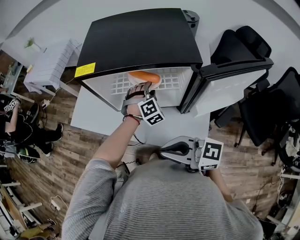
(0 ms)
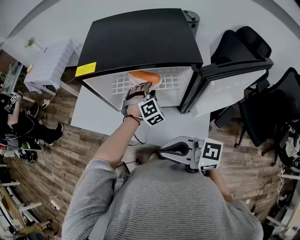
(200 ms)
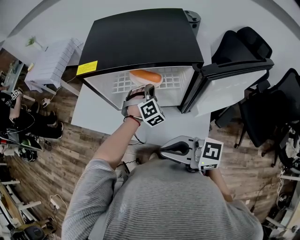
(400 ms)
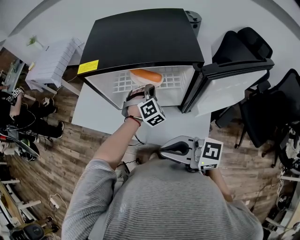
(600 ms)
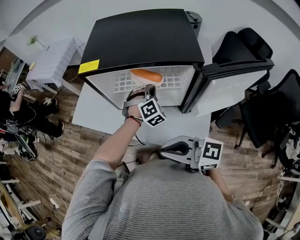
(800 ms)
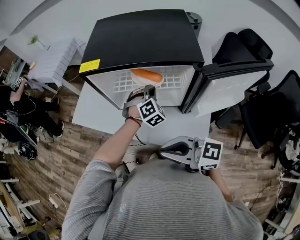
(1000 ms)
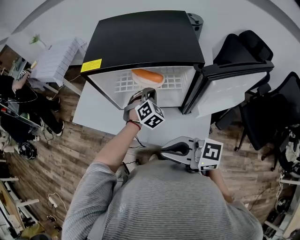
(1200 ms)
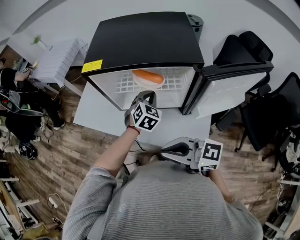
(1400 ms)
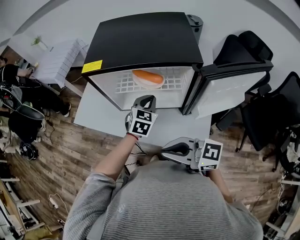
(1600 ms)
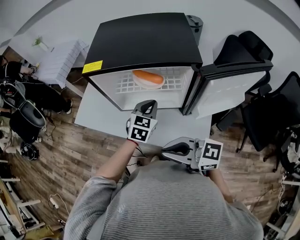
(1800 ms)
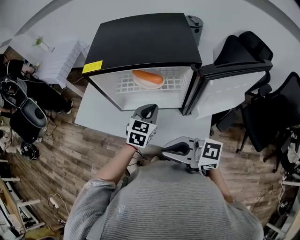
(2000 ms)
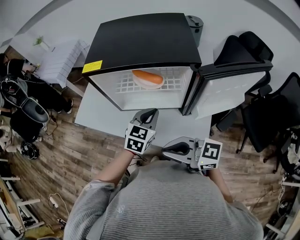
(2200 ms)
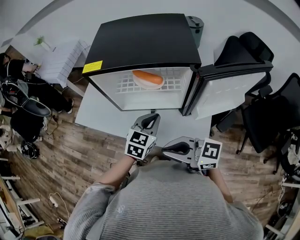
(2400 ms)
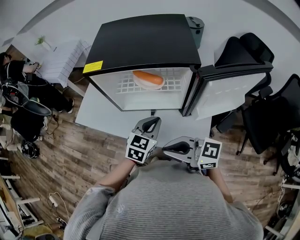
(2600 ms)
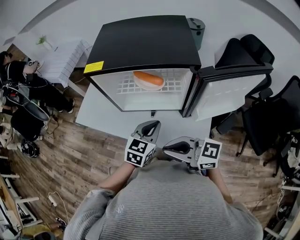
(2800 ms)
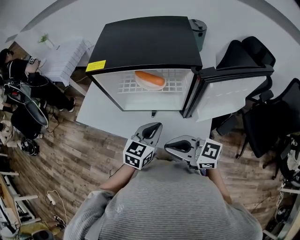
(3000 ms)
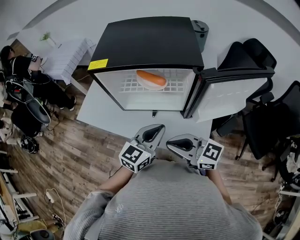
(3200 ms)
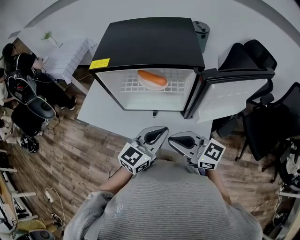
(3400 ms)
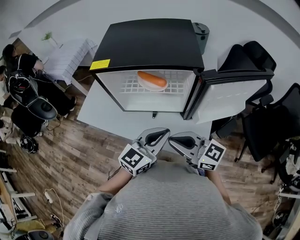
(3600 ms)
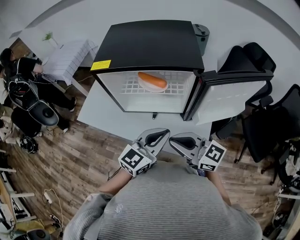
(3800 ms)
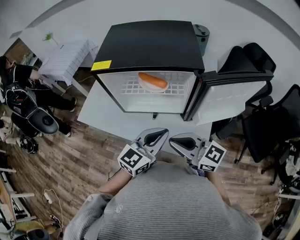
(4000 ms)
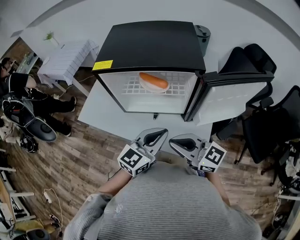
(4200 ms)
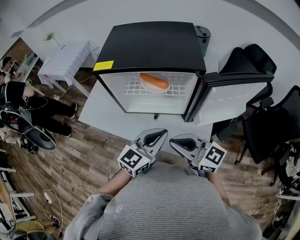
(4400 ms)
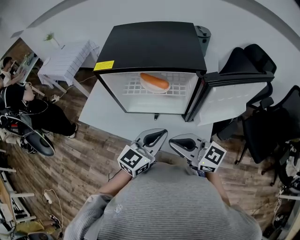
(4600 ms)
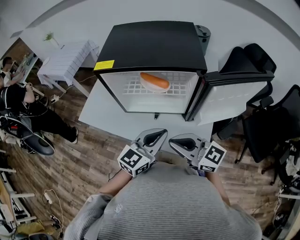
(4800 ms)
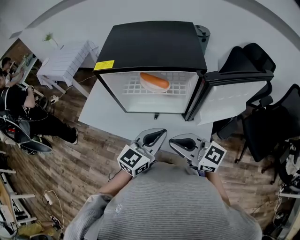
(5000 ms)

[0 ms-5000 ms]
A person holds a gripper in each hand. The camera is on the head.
0 ms to 1600 ms: The left gripper goes about 5 cm to the left, rotates around the line of its fingers by roughly 50 degrees, counterclockwise from behind, and closes up.
1600 ms to 3400 ms: The left gripper heads backward and upward, covering some 20 cm, and changes its angle by approximately 40 degrees. The right gripper shifts by approximately 5 cm.
3400 ms to 5000 ms: The grippers stay close to where they were, moving slightly.

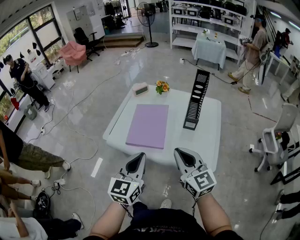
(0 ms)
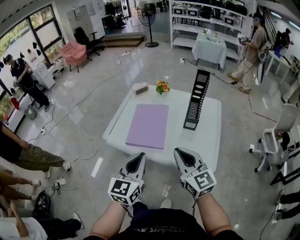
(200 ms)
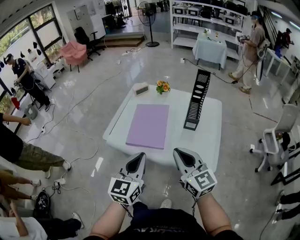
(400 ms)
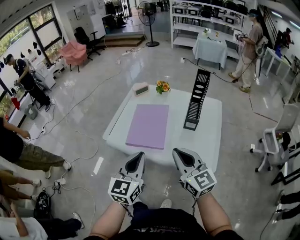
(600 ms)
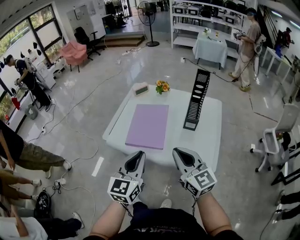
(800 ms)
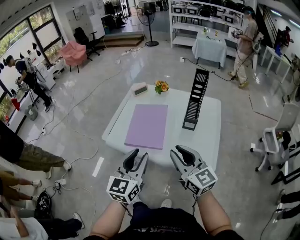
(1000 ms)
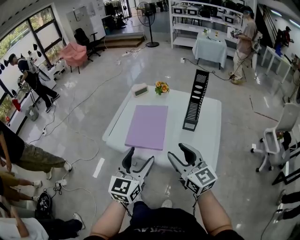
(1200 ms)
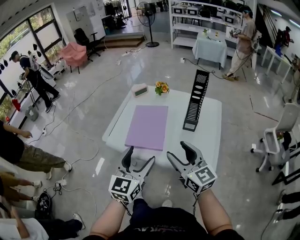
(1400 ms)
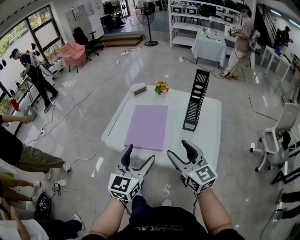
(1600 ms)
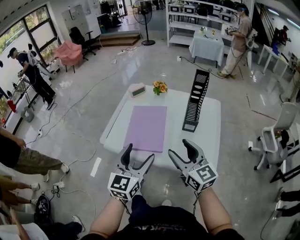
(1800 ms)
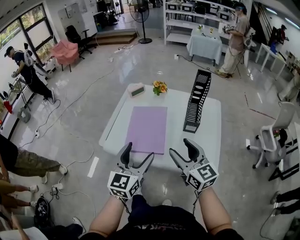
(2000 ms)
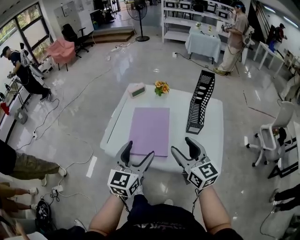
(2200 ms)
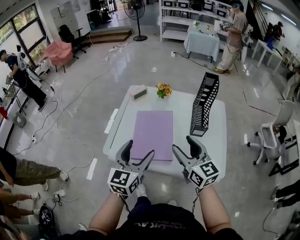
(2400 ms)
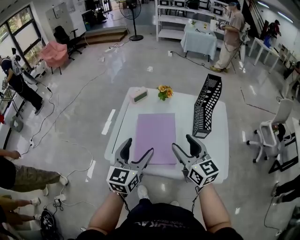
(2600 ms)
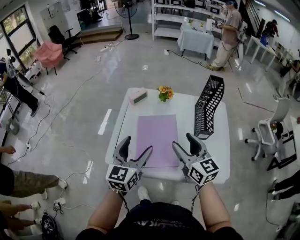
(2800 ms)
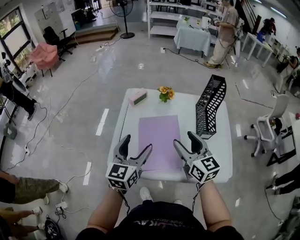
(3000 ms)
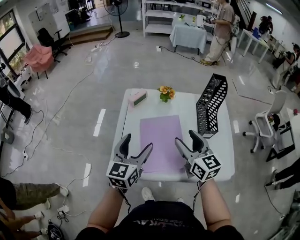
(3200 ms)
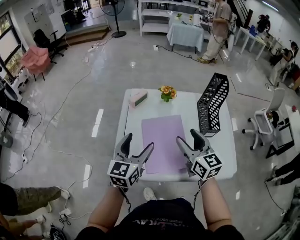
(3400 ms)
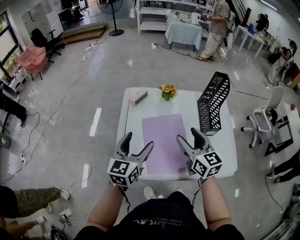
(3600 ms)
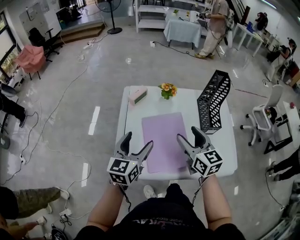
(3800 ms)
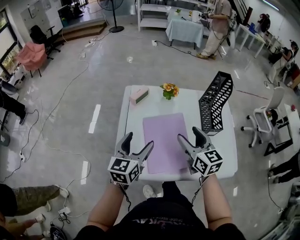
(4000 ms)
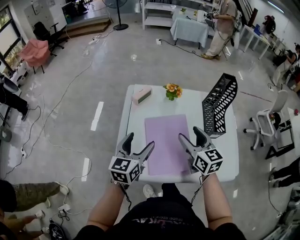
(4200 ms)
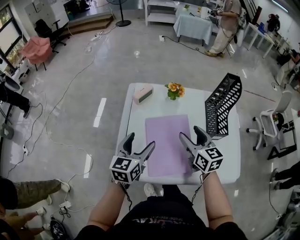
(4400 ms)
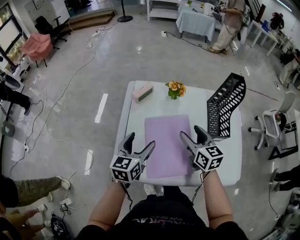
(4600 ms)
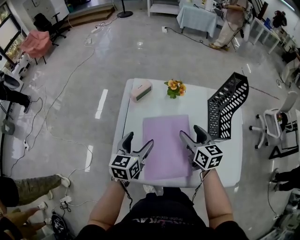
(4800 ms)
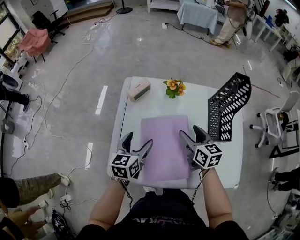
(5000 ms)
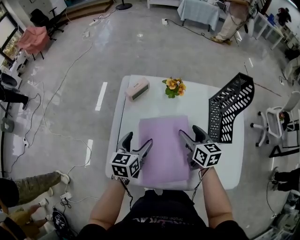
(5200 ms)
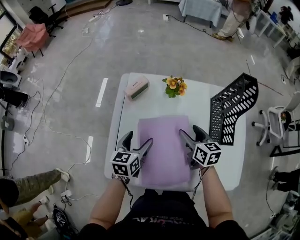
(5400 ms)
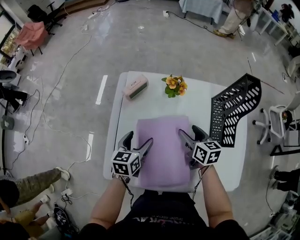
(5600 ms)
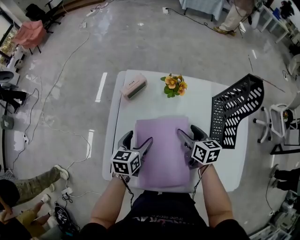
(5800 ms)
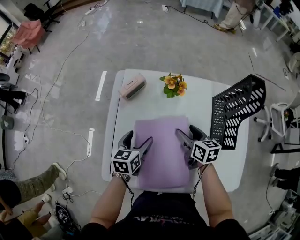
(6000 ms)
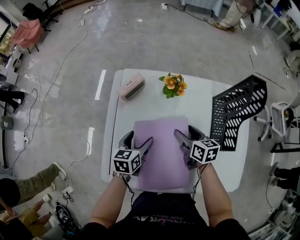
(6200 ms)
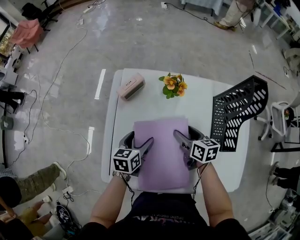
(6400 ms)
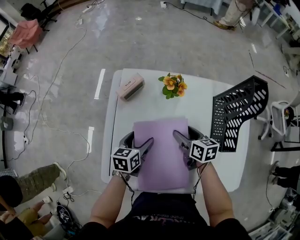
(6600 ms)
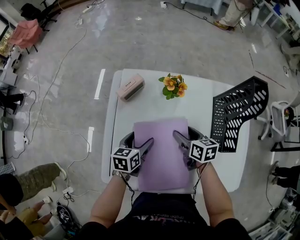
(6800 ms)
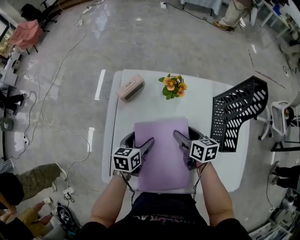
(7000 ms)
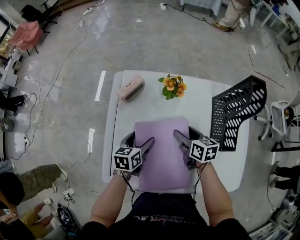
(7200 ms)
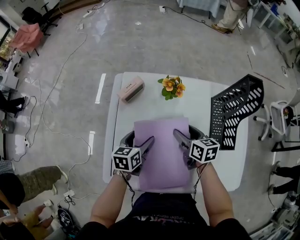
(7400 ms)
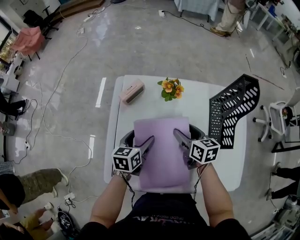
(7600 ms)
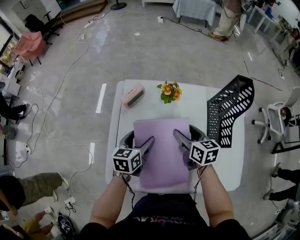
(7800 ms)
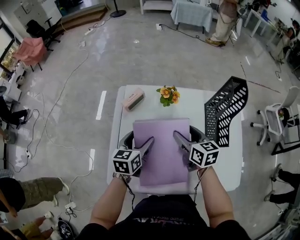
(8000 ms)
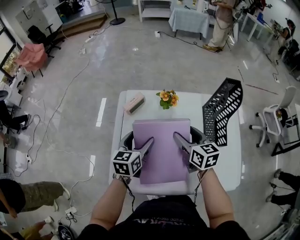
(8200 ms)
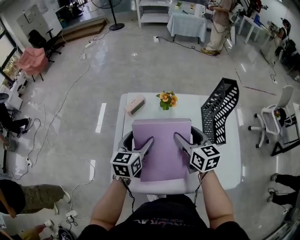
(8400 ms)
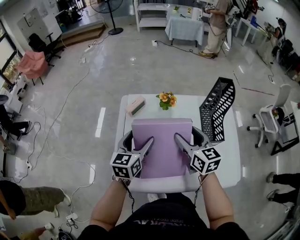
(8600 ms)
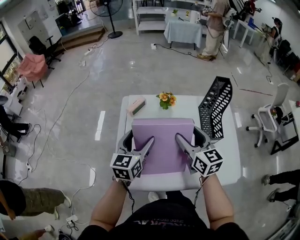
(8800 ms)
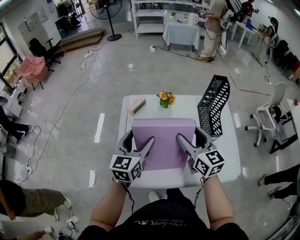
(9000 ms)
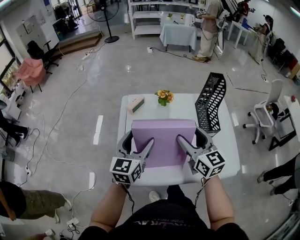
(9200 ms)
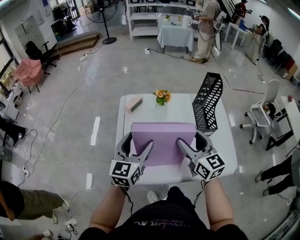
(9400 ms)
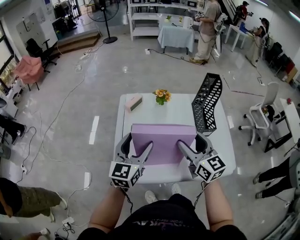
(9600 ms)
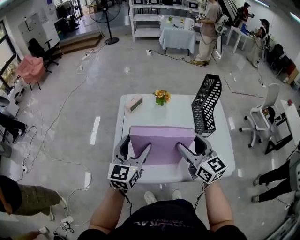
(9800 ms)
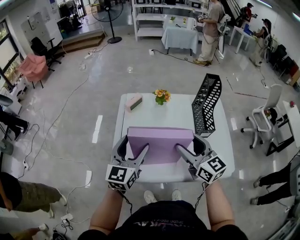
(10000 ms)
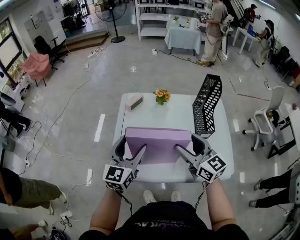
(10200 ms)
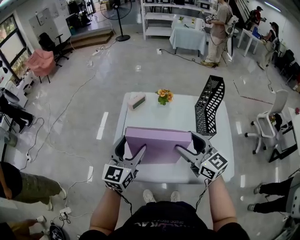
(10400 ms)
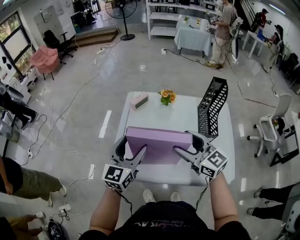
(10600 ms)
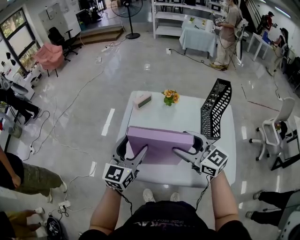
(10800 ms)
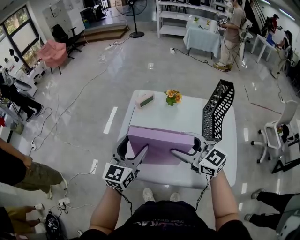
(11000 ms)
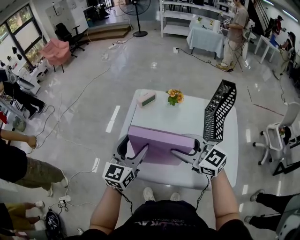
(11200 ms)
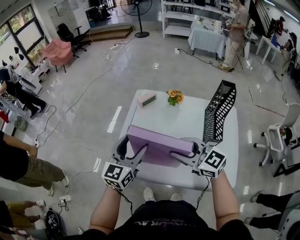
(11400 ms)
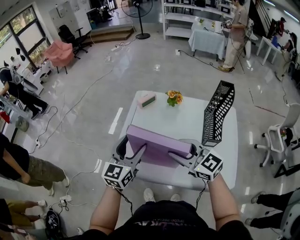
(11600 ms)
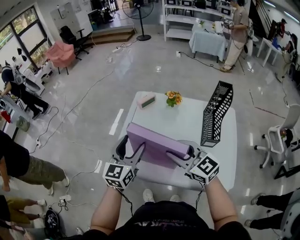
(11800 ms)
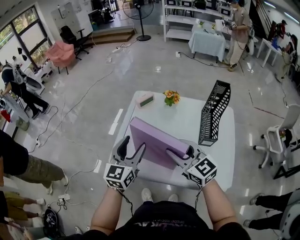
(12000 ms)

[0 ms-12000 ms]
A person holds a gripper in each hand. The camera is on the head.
0 ms to 1600 ms: The left gripper opens up. The right gripper opens up.
1600 ms to 3000 ms: The grippers both shift forward and to the left by some 25 cm.
3000 ms to 4400 ms: The left gripper moves downward and forward, approximately 10 cm, while the right gripper is displaced forward and downward by some 10 cm.
4400 ms to 6000 ms: Both grippers travel together downward and forward, roughly 20 cm. The right gripper swivels about 30 degrees. The left gripper rotates some 20 degrees.
6000 ms to 7600 ms: The grippers make only small movements.
7600 ms to 9000 ms: The grippers both shift upward and backward by about 20 cm. The left gripper changes its angle by approximately 30 degrees. The right gripper changes its angle by approximately 30 degrees.
9000 ms to 10400 ms: The two grippers go roughly 10 cm backward. The right gripper swivels about 20 degrees.
10400 ms to 12000 ms: The right gripper closes up.

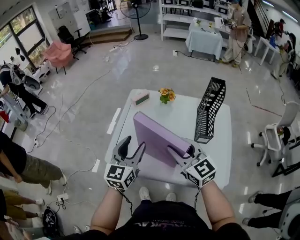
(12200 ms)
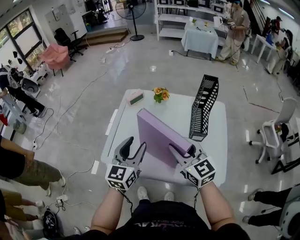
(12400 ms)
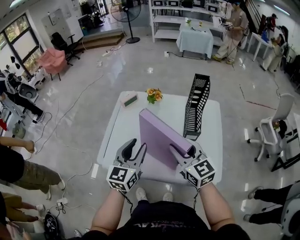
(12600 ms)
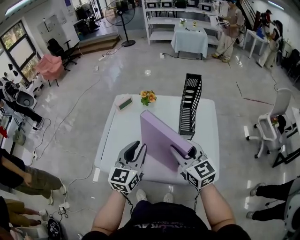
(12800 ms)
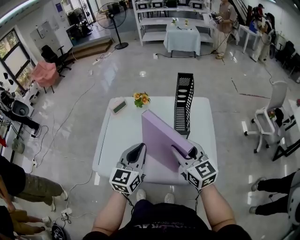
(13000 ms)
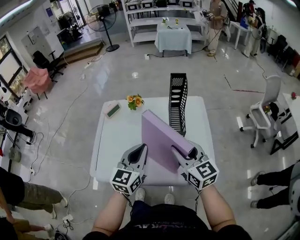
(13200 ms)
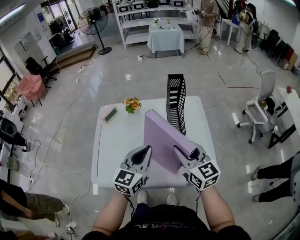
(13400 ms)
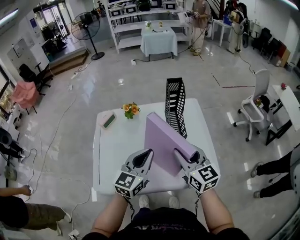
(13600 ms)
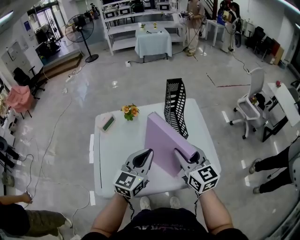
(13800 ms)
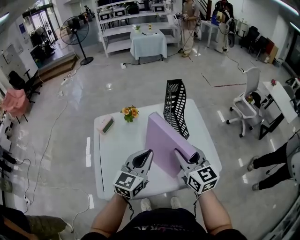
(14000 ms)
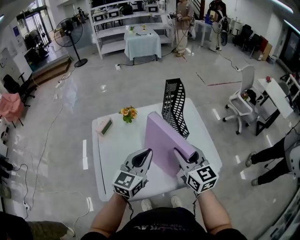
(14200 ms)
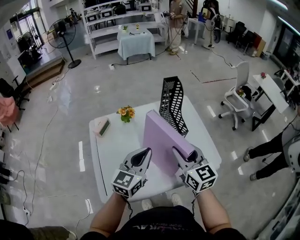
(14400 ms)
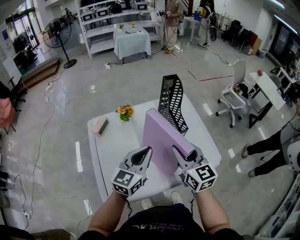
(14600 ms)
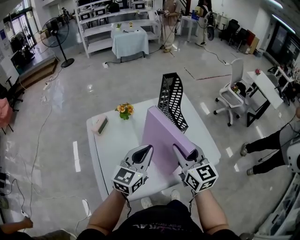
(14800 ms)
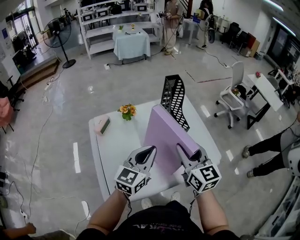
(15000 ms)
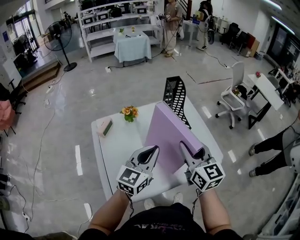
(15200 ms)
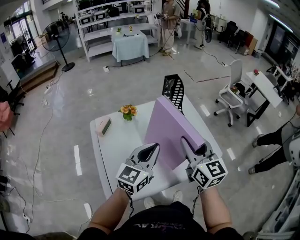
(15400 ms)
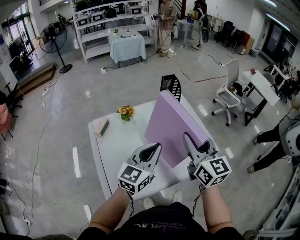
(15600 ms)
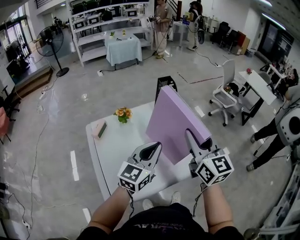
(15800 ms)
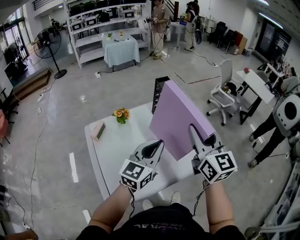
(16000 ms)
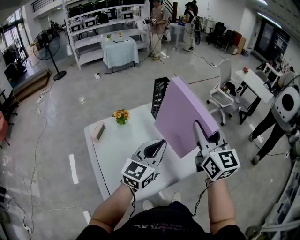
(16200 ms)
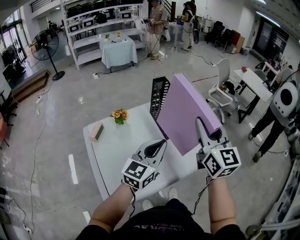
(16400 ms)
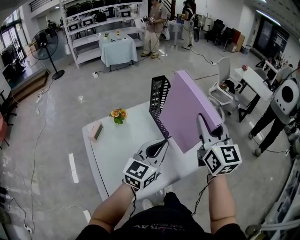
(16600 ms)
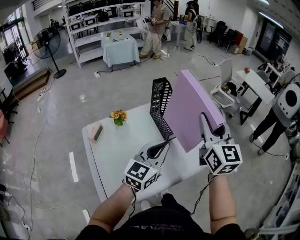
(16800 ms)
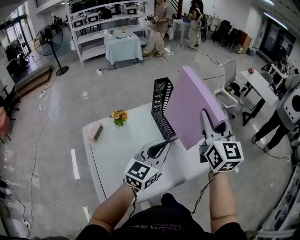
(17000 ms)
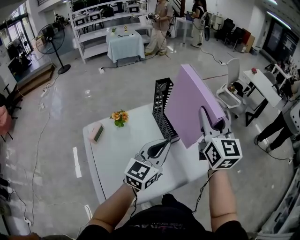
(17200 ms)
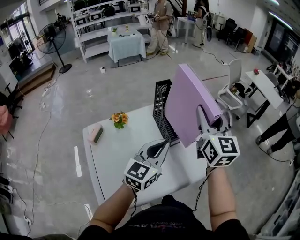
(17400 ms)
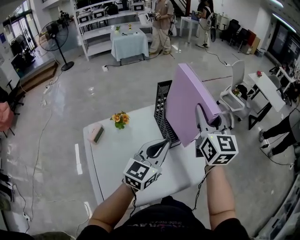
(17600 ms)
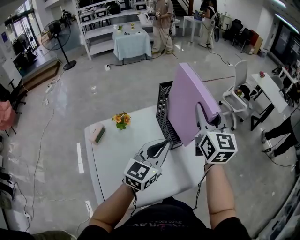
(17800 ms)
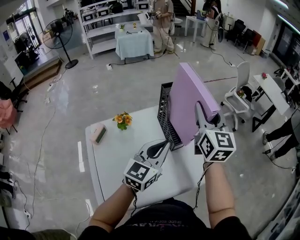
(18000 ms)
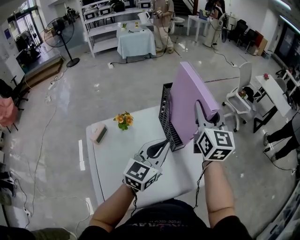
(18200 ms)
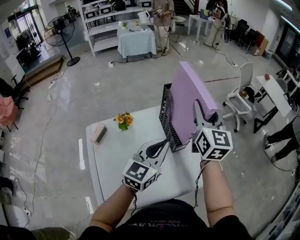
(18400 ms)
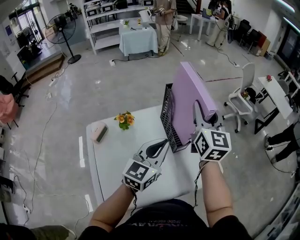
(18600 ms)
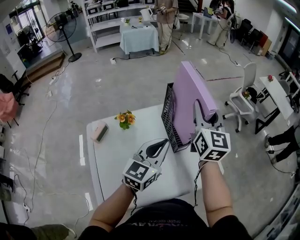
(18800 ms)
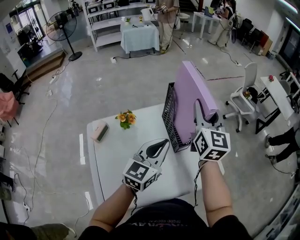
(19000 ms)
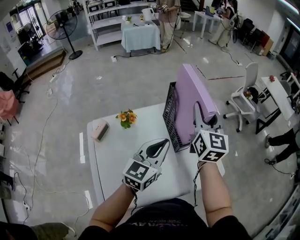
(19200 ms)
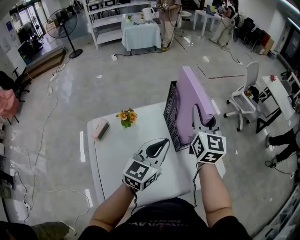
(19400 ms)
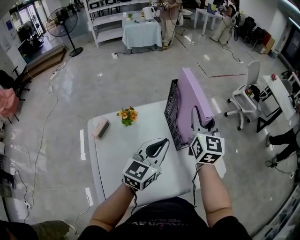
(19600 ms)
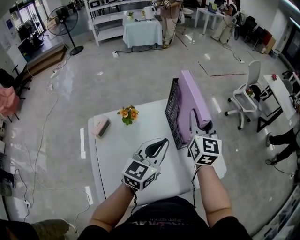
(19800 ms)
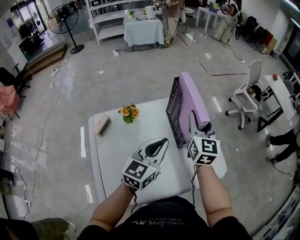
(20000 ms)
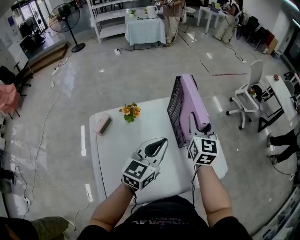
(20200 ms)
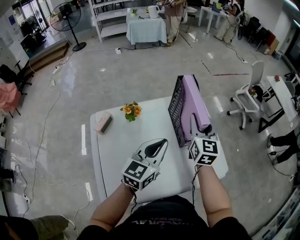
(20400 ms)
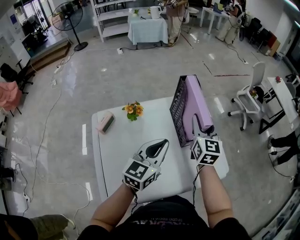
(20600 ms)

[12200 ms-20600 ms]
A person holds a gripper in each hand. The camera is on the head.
12200 ms to 13600 ms: The left gripper changes place by some 20 cm, changes its angle by roughly 30 degrees, and closes its fingers, while the right gripper ends up about 15 cm from where it was, and turns by about 30 degrees.
13600 ms to 15000 ms: Both grippers move to the left, about 5 cm.
15000 ms to 16400 ms: The right gripper heads upward and to the right, covering some 15 cm, and turns by some 20 degrees, while the left gripper is displaced to the right and upward by roughly 10 cm.
16400 ms to 17800 ms: The right gripper shifts roughly 15 cm forward. Meanwhile the left gripper goes about 10 cm forward.
17800 ms to 19200 ms: The left gripper moves some 5 cm, while the right gripper changes place by some 10 cm.
19200 ms to 20600 ms: The right gripper goes about 10 cm downward.
